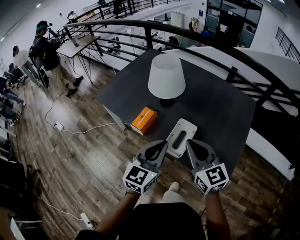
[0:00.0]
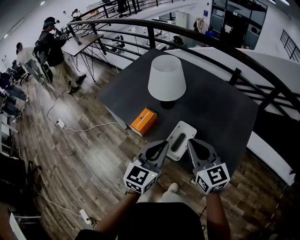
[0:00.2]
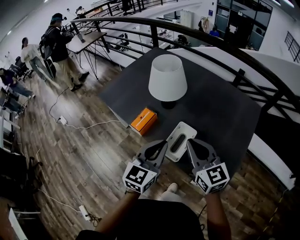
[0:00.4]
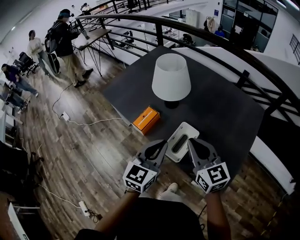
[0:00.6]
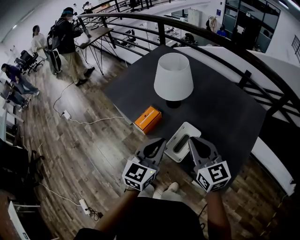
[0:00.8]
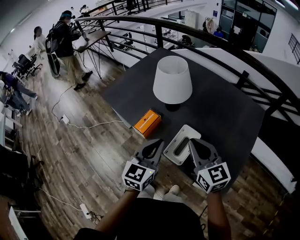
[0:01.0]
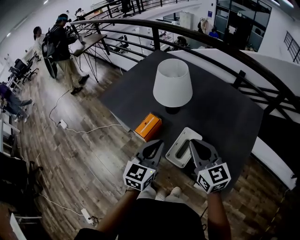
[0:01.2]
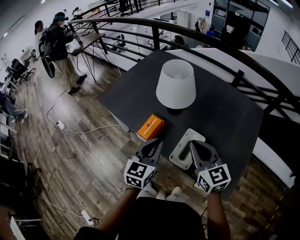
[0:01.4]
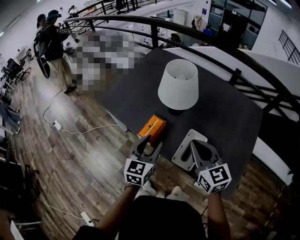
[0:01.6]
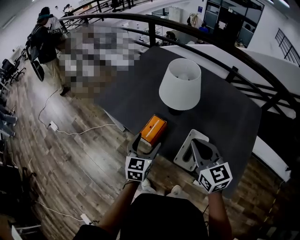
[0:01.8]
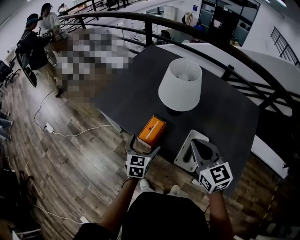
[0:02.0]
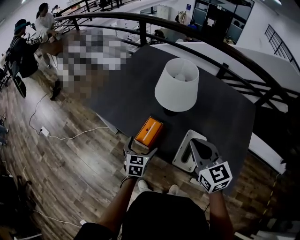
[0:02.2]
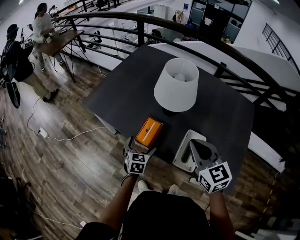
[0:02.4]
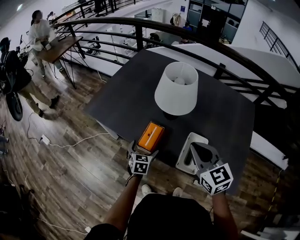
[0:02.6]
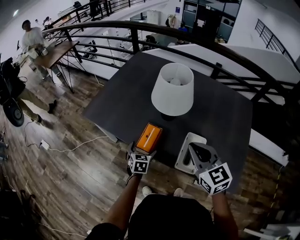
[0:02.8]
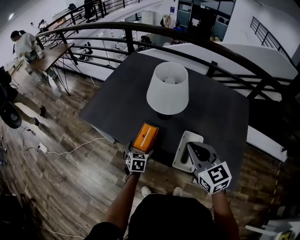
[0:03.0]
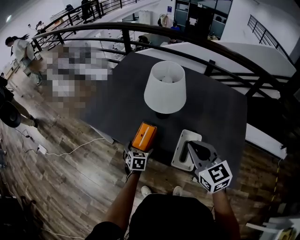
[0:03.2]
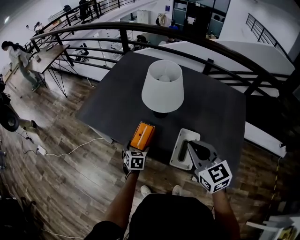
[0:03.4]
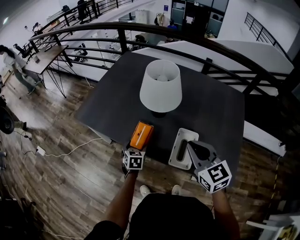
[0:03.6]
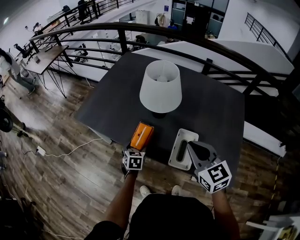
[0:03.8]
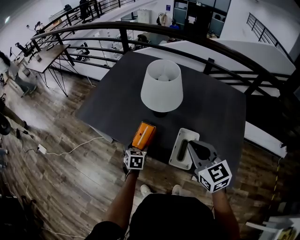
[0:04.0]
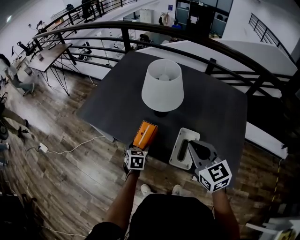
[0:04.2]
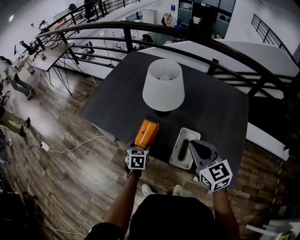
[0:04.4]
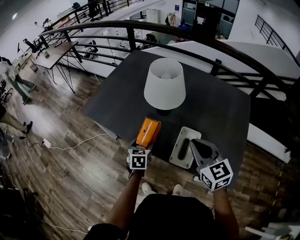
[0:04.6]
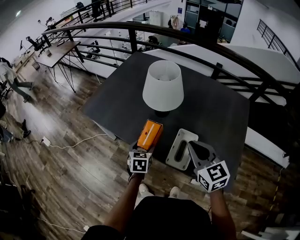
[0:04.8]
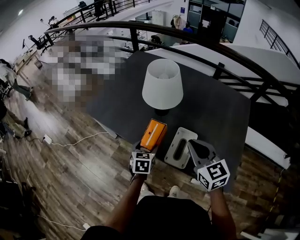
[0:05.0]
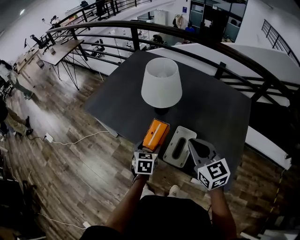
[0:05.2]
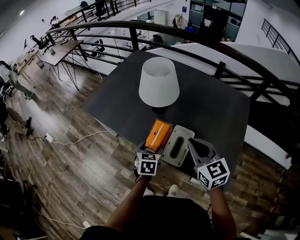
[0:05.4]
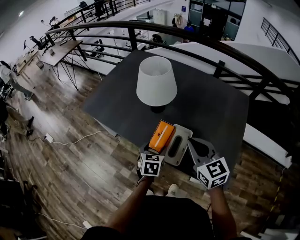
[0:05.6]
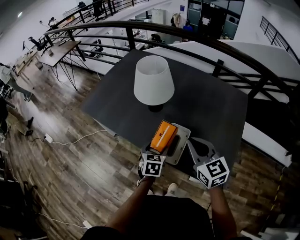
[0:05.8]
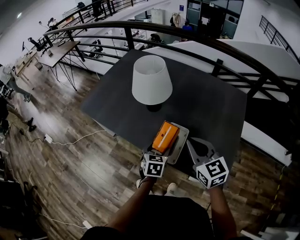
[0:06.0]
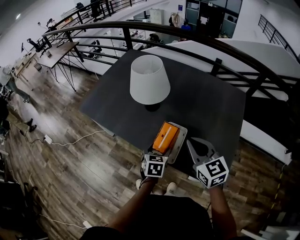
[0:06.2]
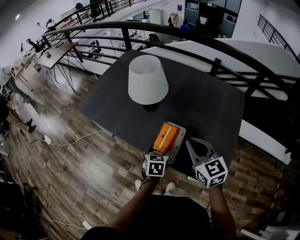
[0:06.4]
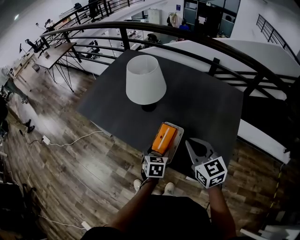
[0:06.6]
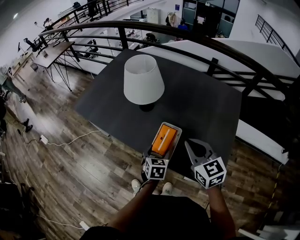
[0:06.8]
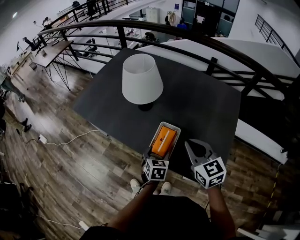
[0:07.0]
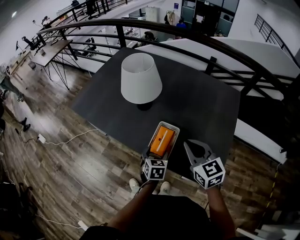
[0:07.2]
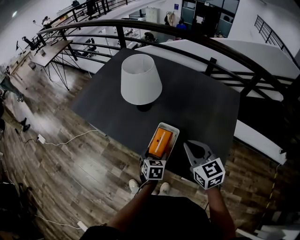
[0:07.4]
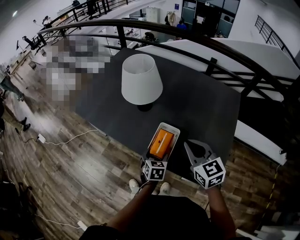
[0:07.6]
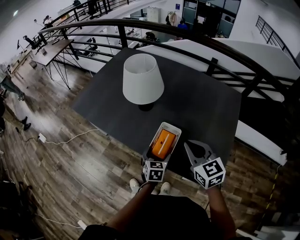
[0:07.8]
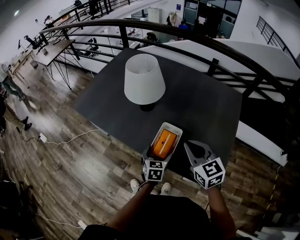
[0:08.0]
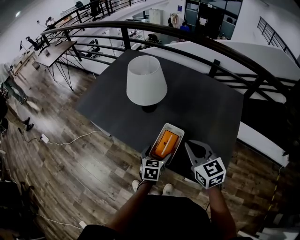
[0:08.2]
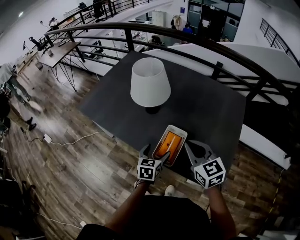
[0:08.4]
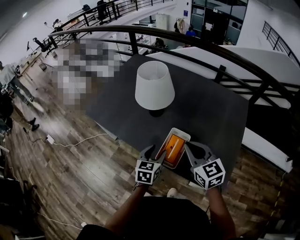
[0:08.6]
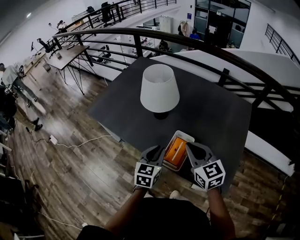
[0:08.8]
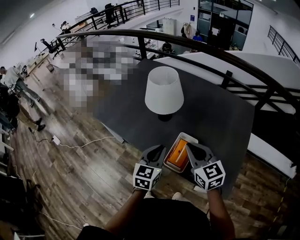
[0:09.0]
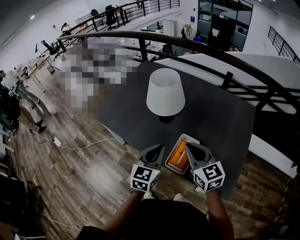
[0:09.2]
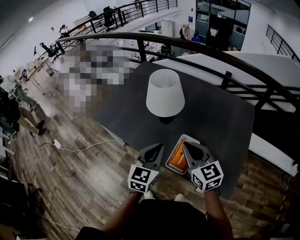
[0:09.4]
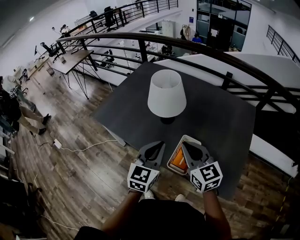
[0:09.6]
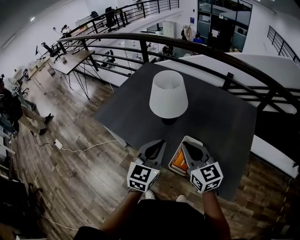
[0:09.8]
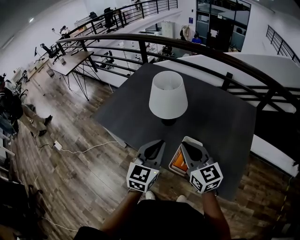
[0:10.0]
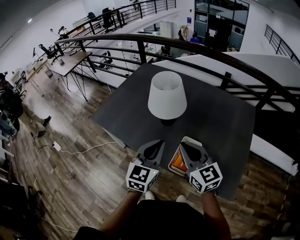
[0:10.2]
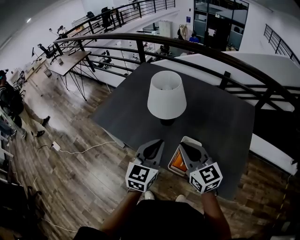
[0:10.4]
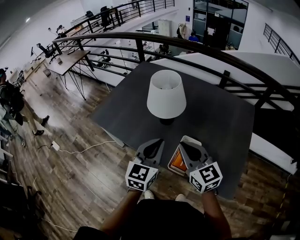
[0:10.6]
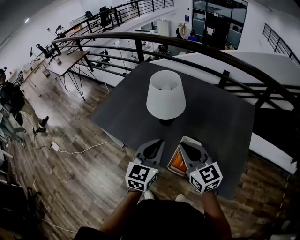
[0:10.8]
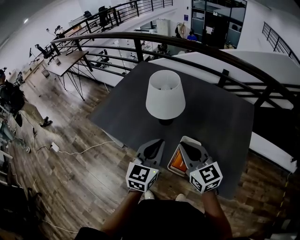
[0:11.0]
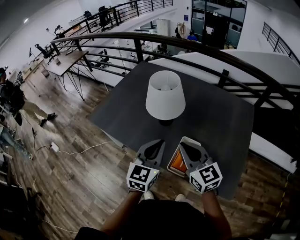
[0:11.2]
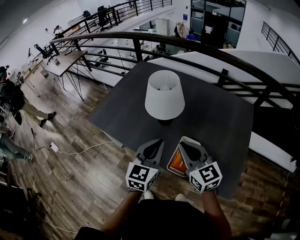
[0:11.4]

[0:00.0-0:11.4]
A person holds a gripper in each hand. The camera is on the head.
0:00.0 to 0:01.4: The left gripper shifts approximately 10 cm forward, downward and to the left, while the right gripper is displaced forward by some 5 cm.
0:01.4 to 0:02.8: The right gripper moves approximately 5 cm. Meanwhile the left gripper moves downward, roughly 25 cm, turns by some 30 degrees, and opens its fingers.
0:02.8 to 0:04.2: The left gripper closes its fingers.
0:04.2 to 0:05.6: The left gripper travels to the right, upward and backward by roughly 15 cm. The right gripper moves to the right, roughly 5 cm.
0:05.6 to 0:07.2: The grippers both shift to the right by about 5 cm.
0:07.2 to 0:08.6: The left gripper moves upward, approximately 5 cm.
0:08.6 to 0:10.0: The right gripper is displaced to the left by about 10 cm, while the left gripper goes roughly 15 cm upward, rotates about 20 degrees, and closes its fingers.
0:10.0 to 0:11.4: The grippers move only a little.

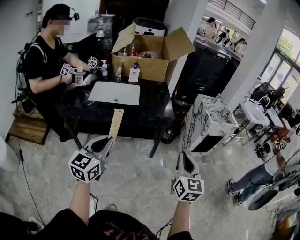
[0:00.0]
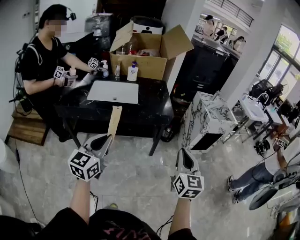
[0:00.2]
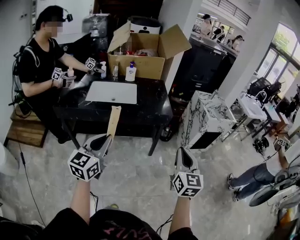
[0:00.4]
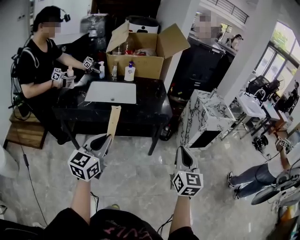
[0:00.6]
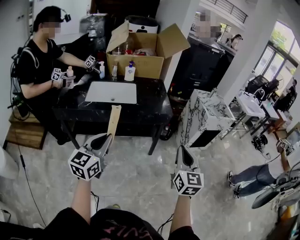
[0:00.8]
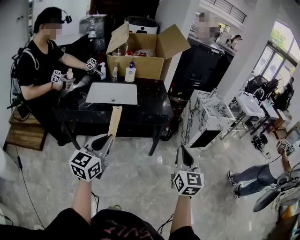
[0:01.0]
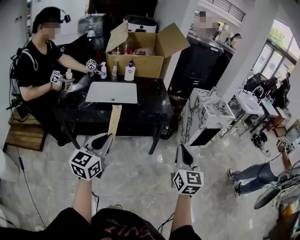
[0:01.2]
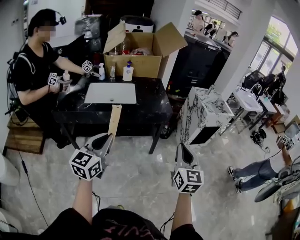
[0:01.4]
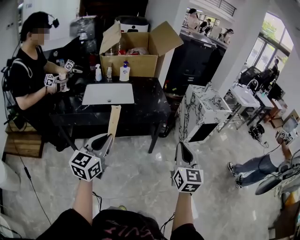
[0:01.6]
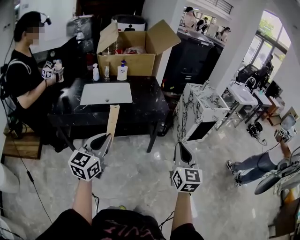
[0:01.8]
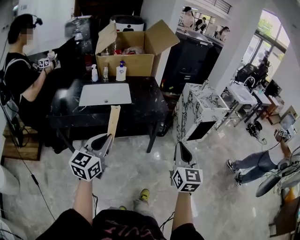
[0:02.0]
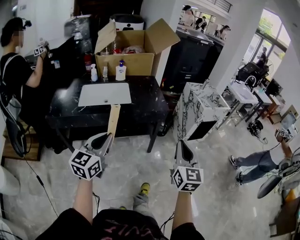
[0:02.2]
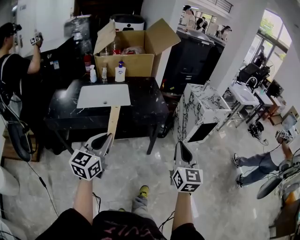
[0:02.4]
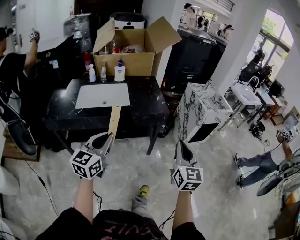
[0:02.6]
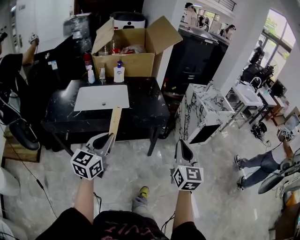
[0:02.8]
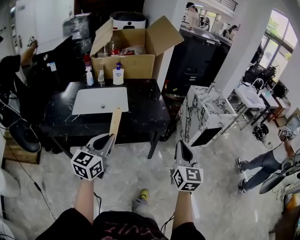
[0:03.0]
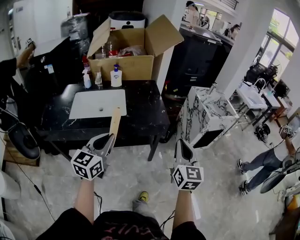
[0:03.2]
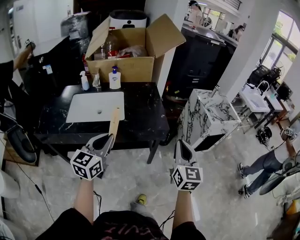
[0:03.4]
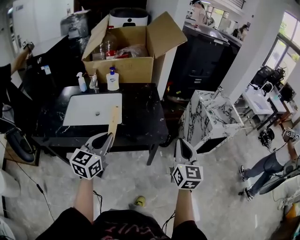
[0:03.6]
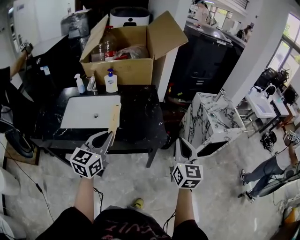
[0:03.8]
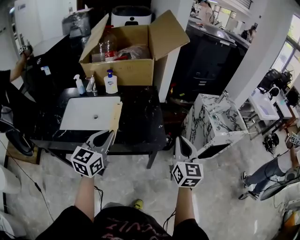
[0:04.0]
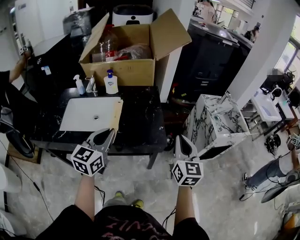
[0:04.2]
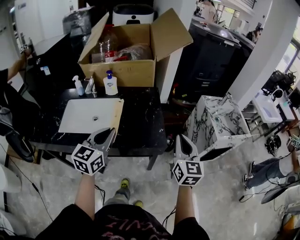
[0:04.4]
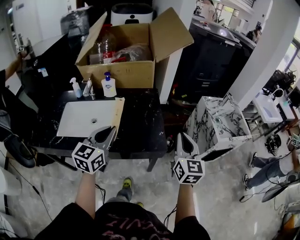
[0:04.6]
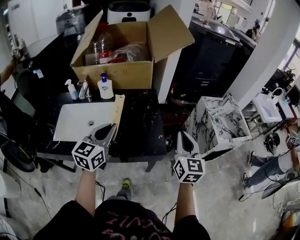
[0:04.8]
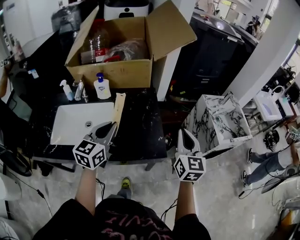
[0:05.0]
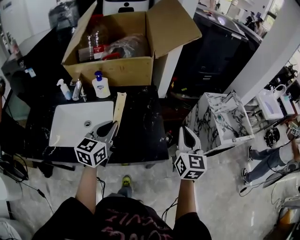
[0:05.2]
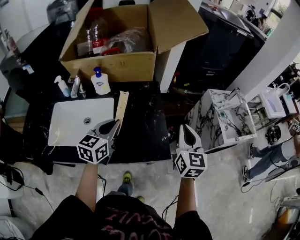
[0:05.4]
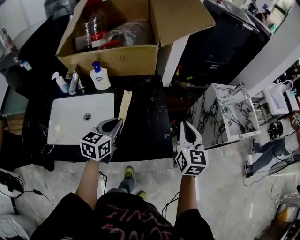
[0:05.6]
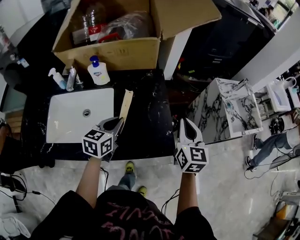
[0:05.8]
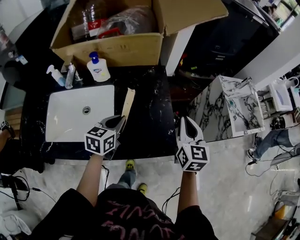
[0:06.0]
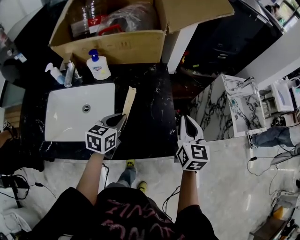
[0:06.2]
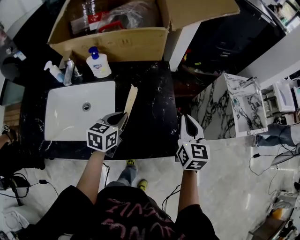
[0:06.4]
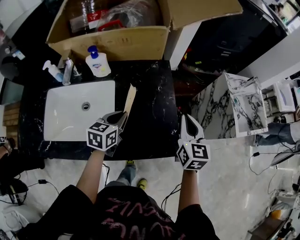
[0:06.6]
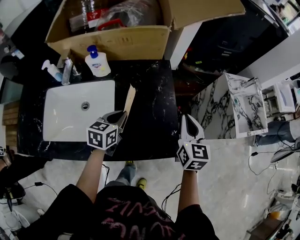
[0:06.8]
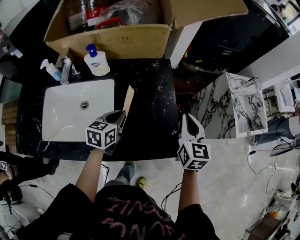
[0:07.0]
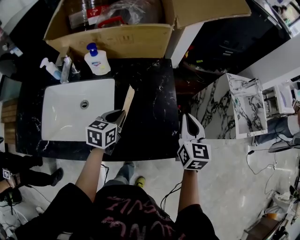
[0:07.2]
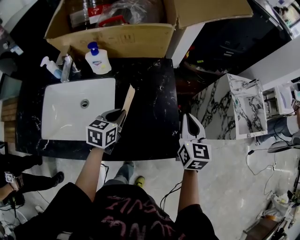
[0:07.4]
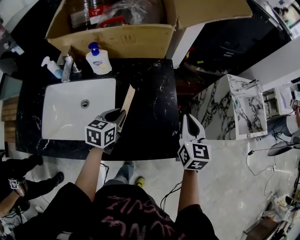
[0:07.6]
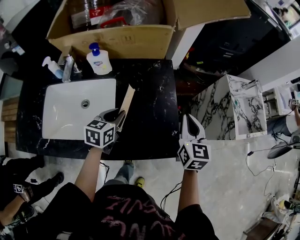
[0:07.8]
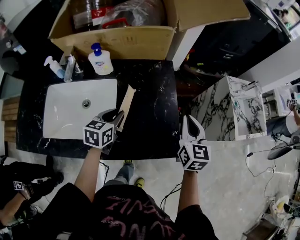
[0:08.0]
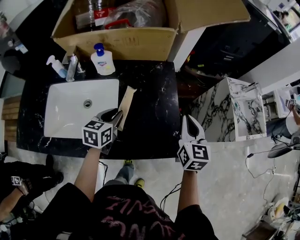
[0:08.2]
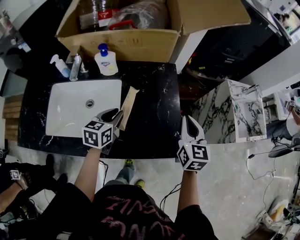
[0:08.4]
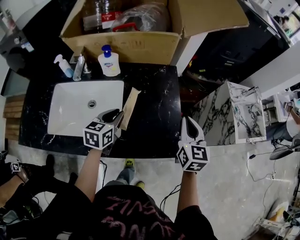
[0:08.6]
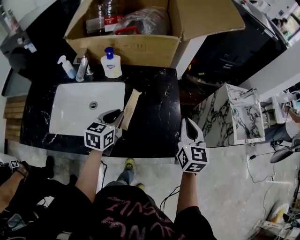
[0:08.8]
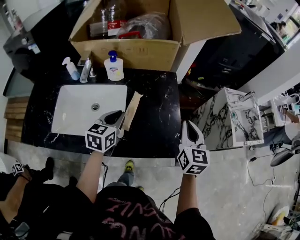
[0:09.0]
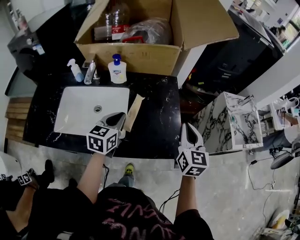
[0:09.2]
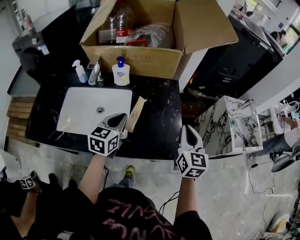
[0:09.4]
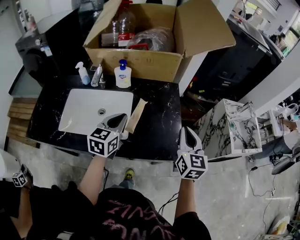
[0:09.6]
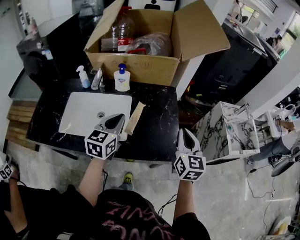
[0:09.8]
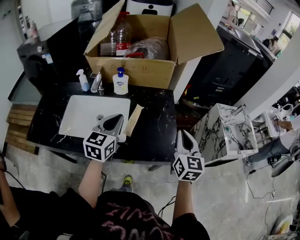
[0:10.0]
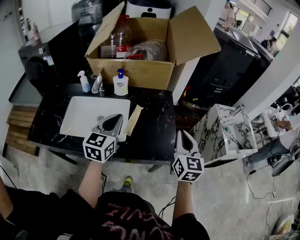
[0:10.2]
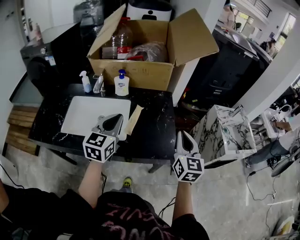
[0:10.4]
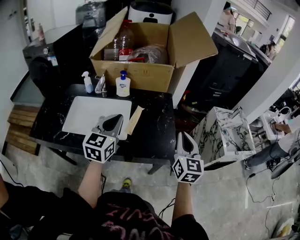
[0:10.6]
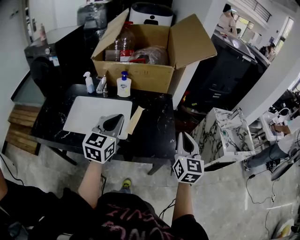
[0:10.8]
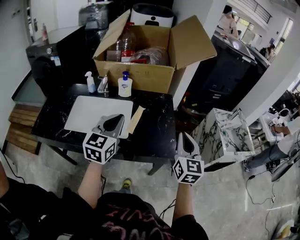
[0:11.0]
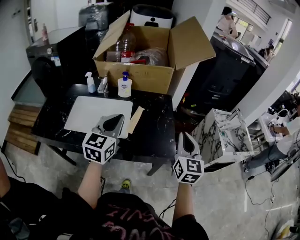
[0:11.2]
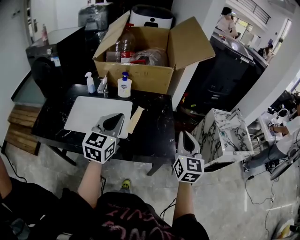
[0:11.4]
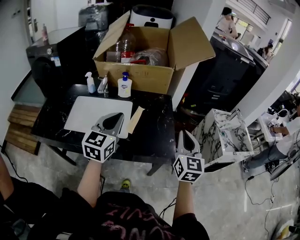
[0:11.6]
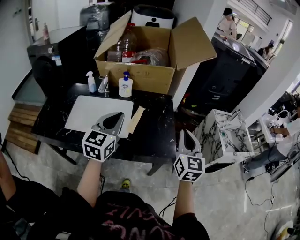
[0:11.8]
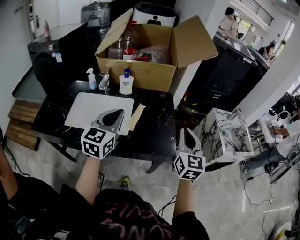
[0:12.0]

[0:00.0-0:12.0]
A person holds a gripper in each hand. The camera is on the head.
0:00.0 to 0:01.6: The right gripper heads to the left, covering roughly 5 cm.
0:01.6 to 0:03.0: The two grippers go roughly 15 cm forward.
0:03.0 to 0:04.4: The two grippers go some 25 cm forward.
0:04.4 to 0:06.0: The grippers both shift forward and downward by approximately 25 cm. The left gripper changes its angle by about 30 degrees.
0:06.0 to 0:07.6: The left gripper ends up about 5 cm from where it was.
0:07.6 to 0:09.0: The right gripper moves about 5 cm. Meanwhile the left gripper is displaced upward by some 10 cm.
0:09.0 to 0:10.4: The left gripper moves upward and backward, about 15 cm, and swivels approximately 20 degrees. The right gripper shifts roughly 10 cm backward and upward.
0:10.4 to 0:12.0: The left gripper ends up roughly 5 cm from where it was.
